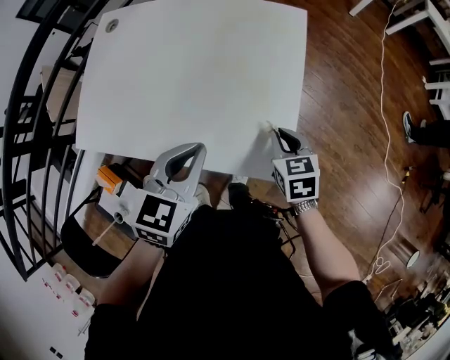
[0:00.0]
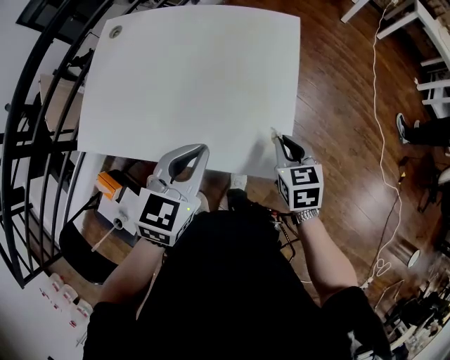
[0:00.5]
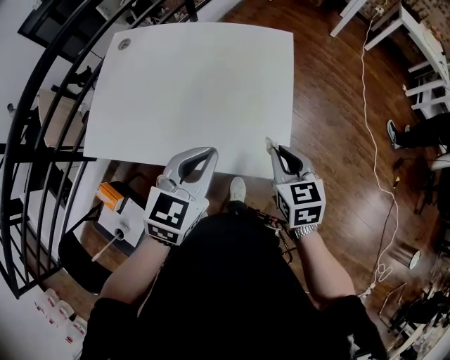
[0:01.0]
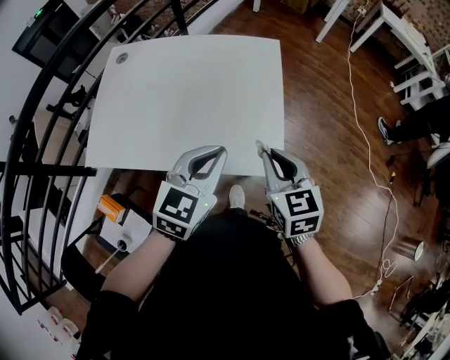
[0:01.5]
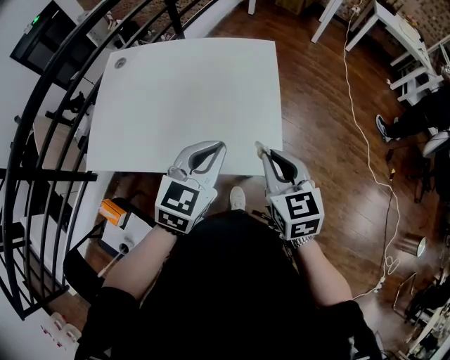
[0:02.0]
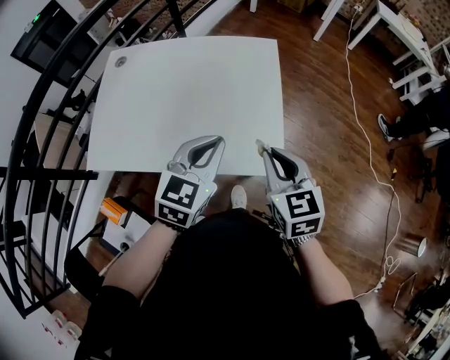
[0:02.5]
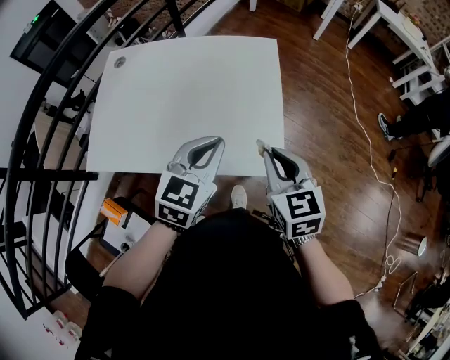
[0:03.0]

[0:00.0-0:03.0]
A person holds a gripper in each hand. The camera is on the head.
0:00.0 to 0:01.5: The left gripper travels upward by roughly 5 cm. The right gripper goes approximately 20 cm upward and backward.
0:01.5 to 0:03.0: The grippers move only a little.

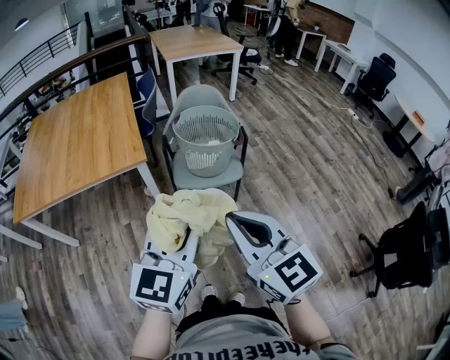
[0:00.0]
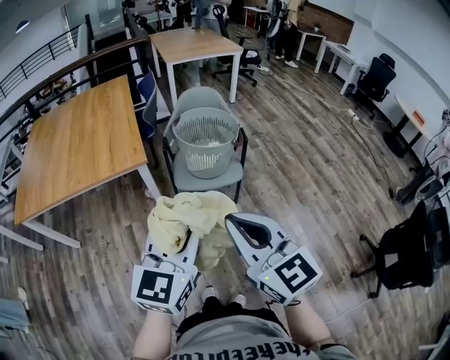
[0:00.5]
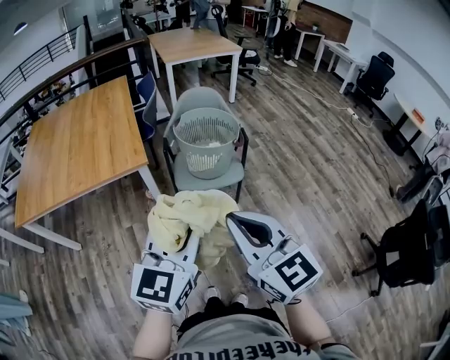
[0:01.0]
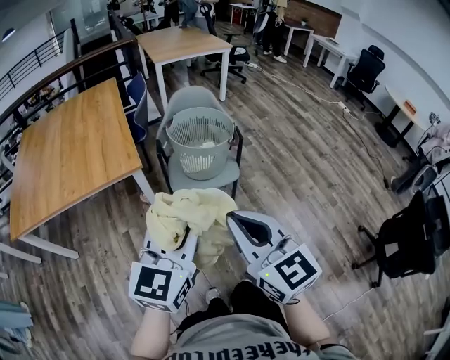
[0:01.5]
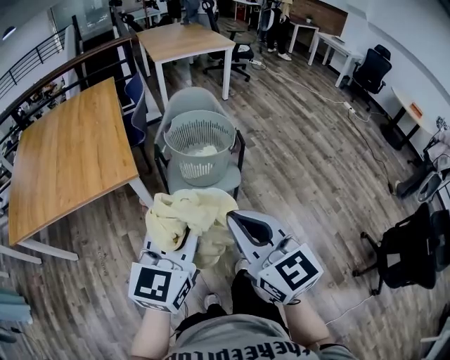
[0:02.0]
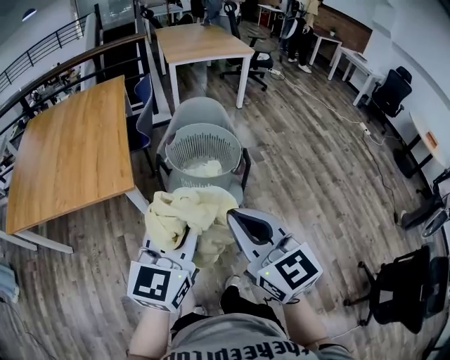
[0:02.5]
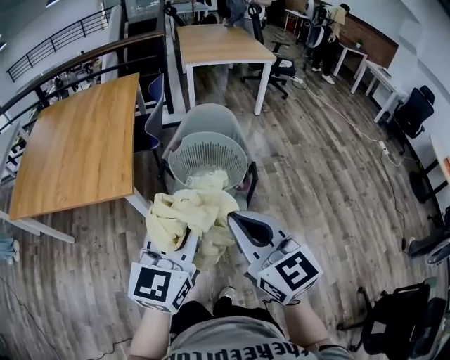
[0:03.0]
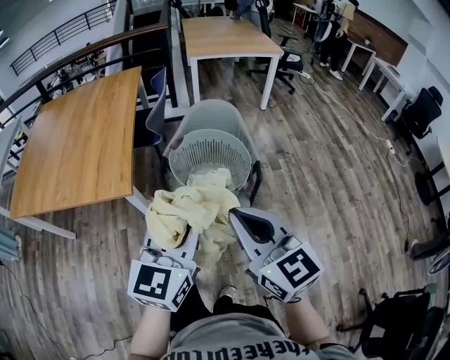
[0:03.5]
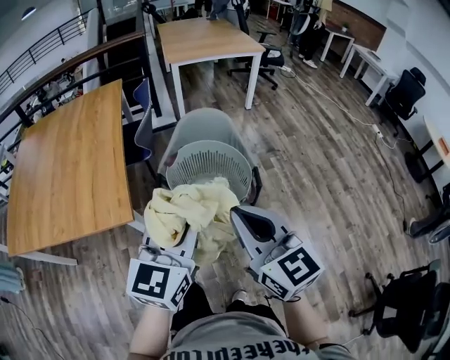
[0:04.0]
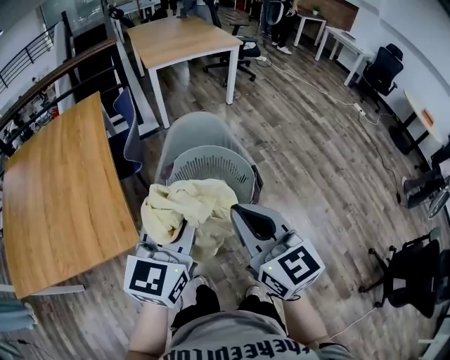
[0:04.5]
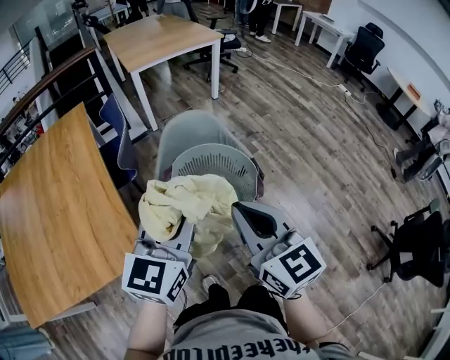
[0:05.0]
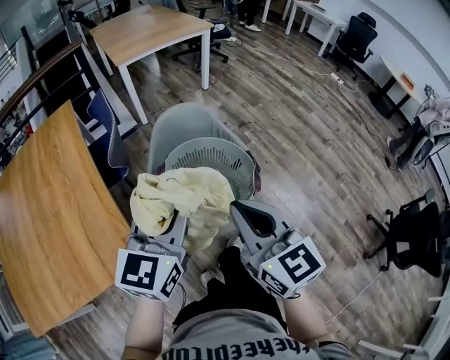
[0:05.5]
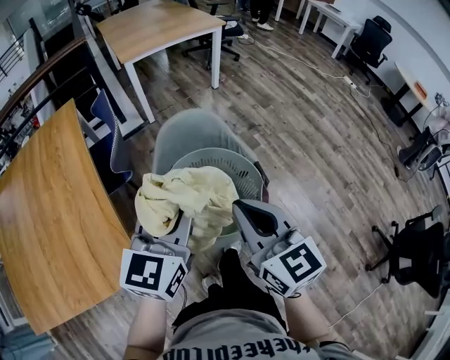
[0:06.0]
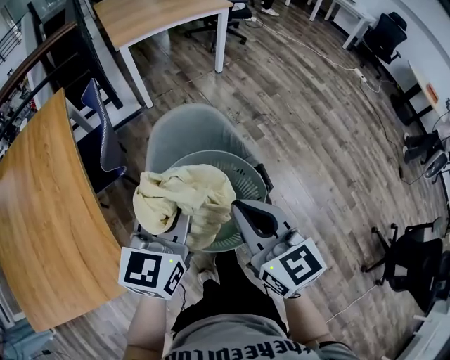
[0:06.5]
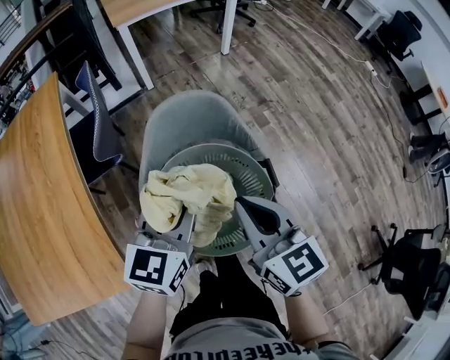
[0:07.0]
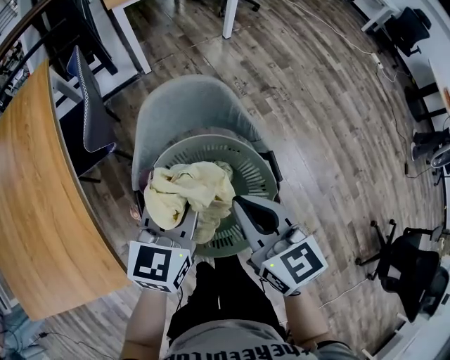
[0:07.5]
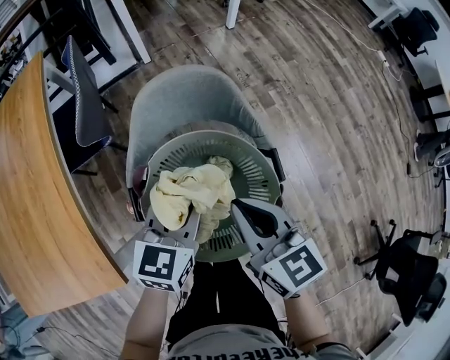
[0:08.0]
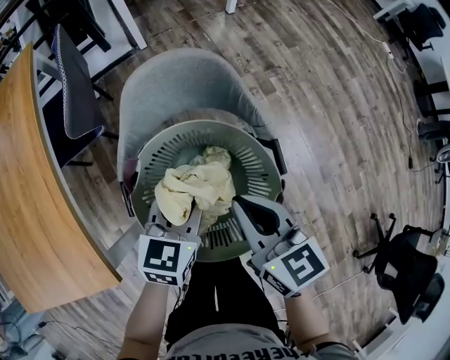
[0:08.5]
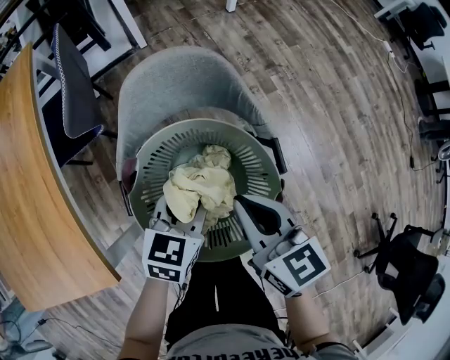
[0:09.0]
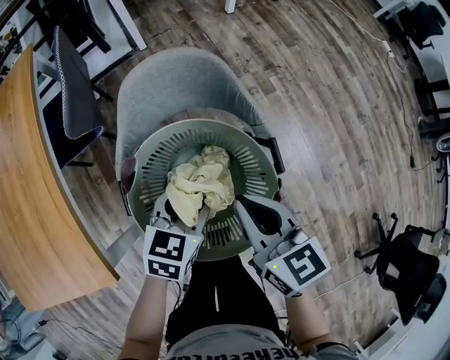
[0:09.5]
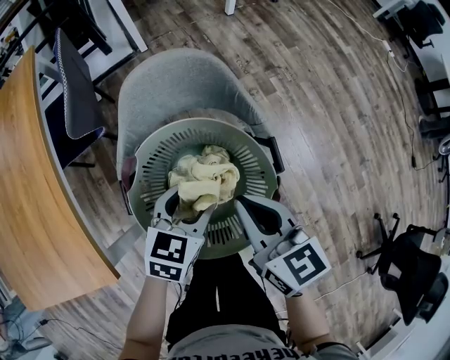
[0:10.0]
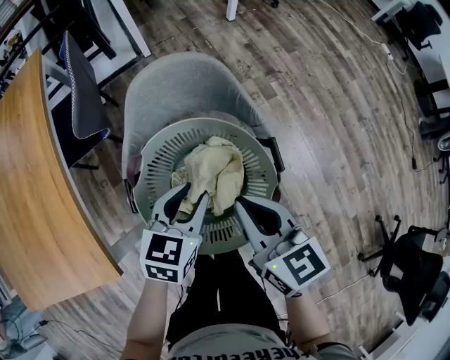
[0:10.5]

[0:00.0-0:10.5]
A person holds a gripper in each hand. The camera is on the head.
0:00.0 to 0:02.0: The grippers both shift forward by approximately 10 cm.
0:02.0 to 0:04.0: Both grippers travel together forward, roughly 25 cm.
0:04.0 to 0:06.5: The right gripper moves forward and downward, approximately 20 cm. The left gripper heads forward, covering about 25 cm.
0:06.5 to 0:08.5: Both grippers travel together downward, some 20 cm. The left gripper rotates some 20 degrees.
0:08.5 to 0:10.5: The left gripper opens and closes again.

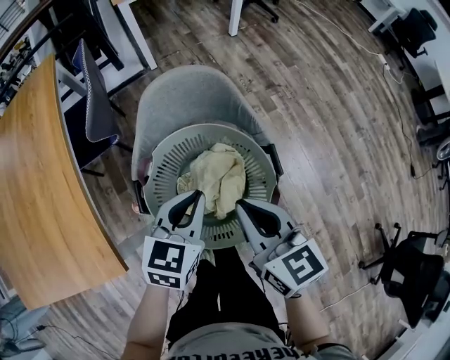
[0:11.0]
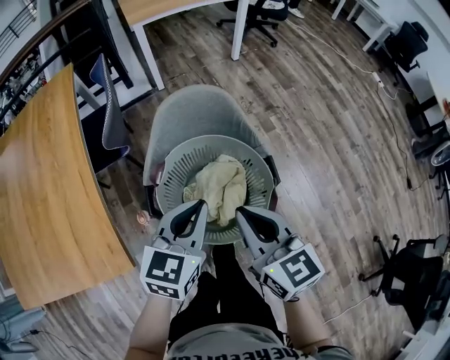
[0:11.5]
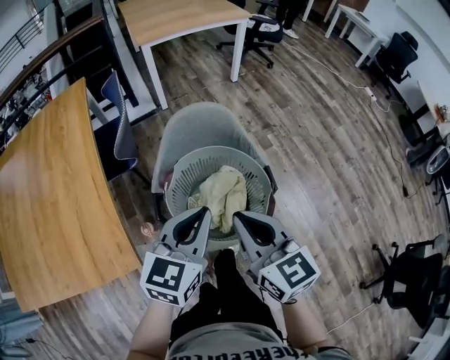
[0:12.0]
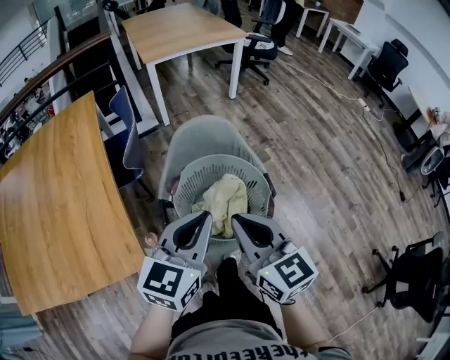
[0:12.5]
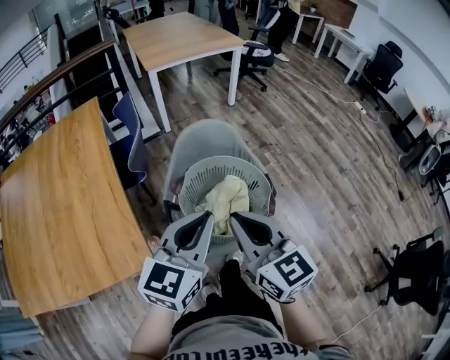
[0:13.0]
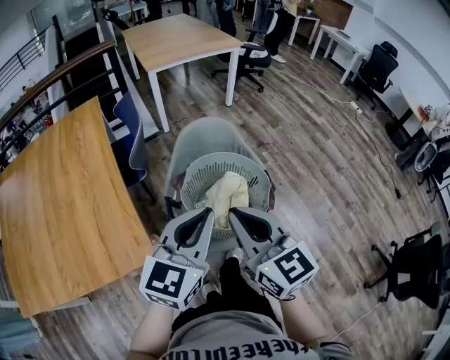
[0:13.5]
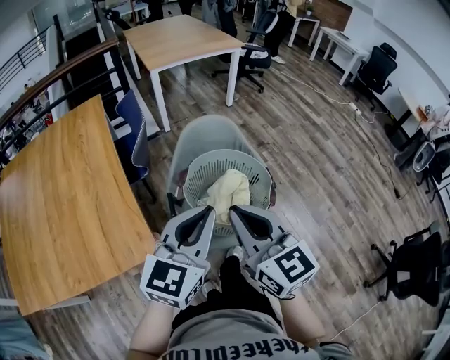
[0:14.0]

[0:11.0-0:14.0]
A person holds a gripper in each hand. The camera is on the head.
0:11.0 to 0:12.5: The left gripper travels upward and backward by approximately 20 cm. Meanwhile the right gripper moves upward, backward and to the left, some 15 cm.
0:12.5 to 0:14.0: The grippers both shift backward by approximately 5 cm.

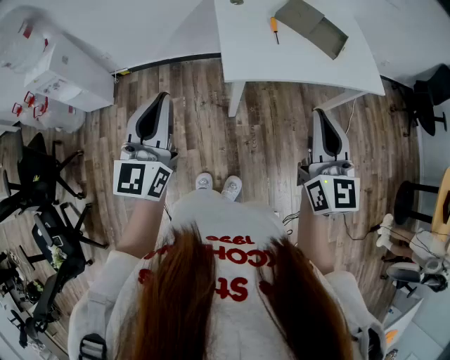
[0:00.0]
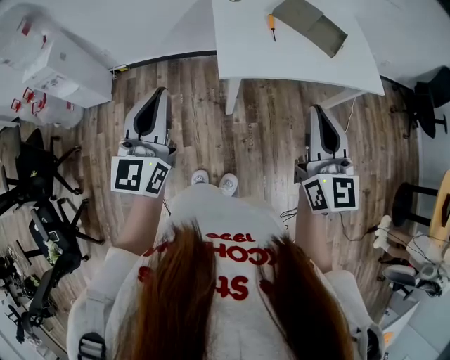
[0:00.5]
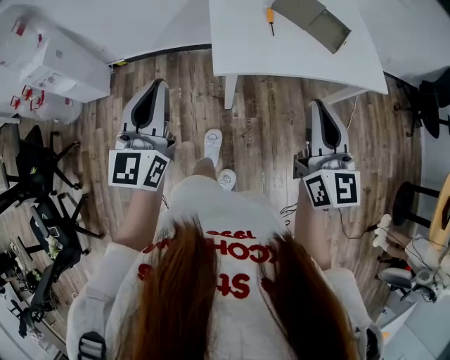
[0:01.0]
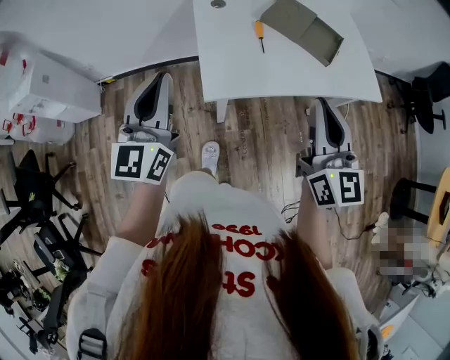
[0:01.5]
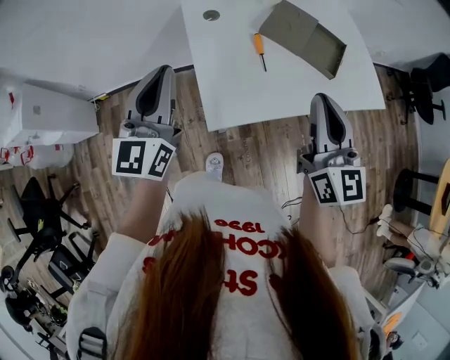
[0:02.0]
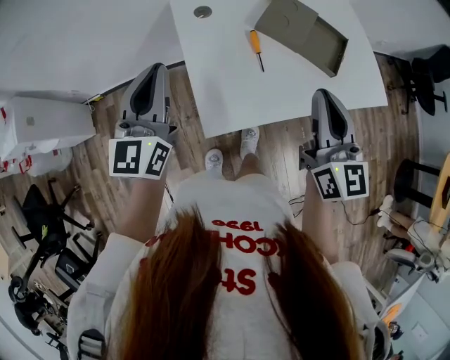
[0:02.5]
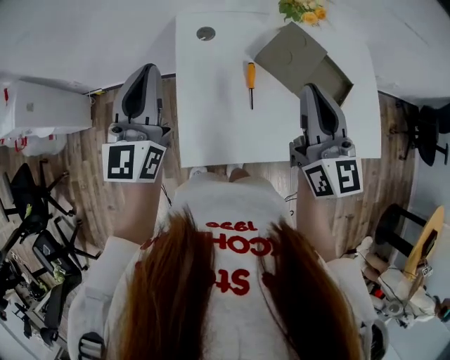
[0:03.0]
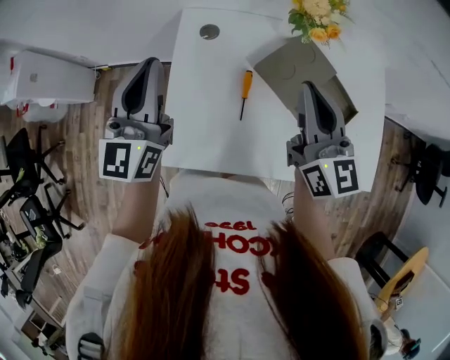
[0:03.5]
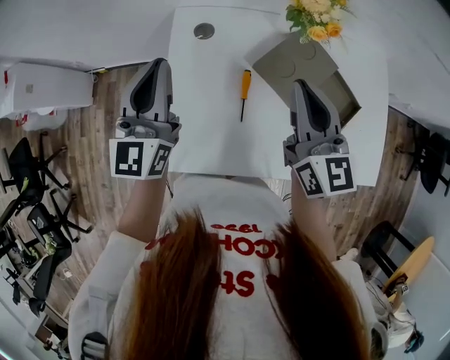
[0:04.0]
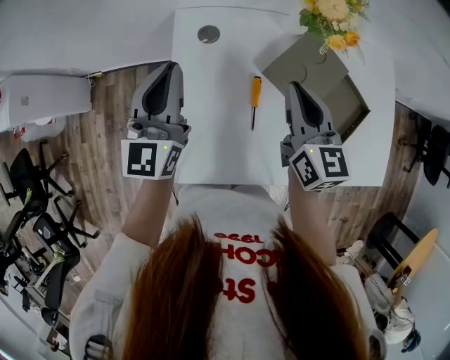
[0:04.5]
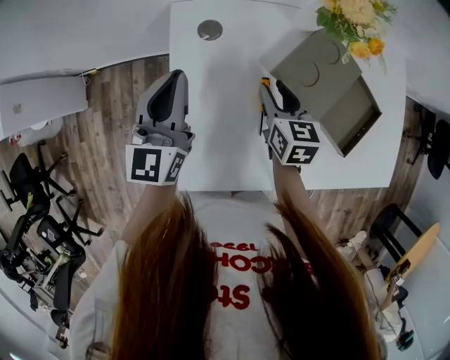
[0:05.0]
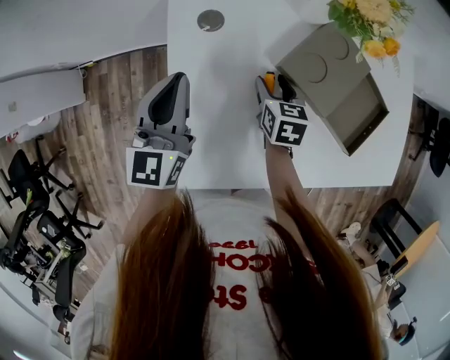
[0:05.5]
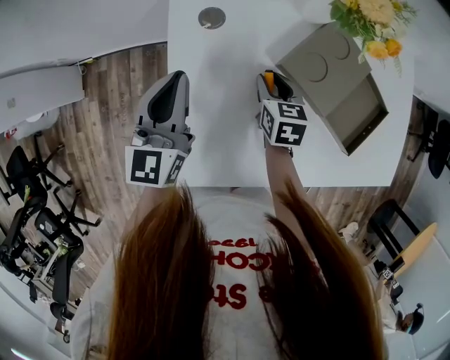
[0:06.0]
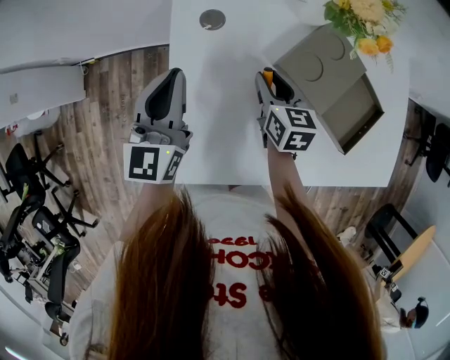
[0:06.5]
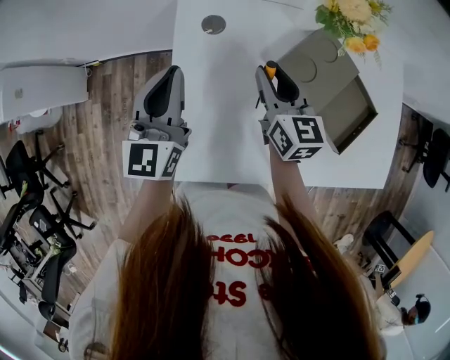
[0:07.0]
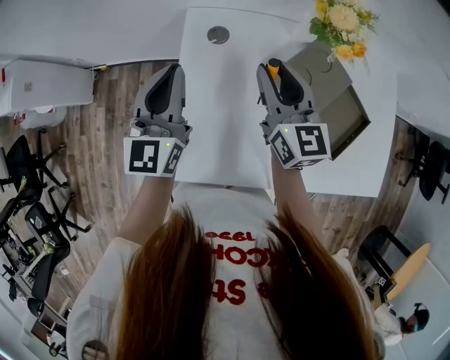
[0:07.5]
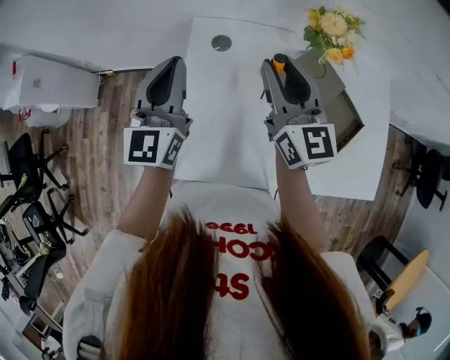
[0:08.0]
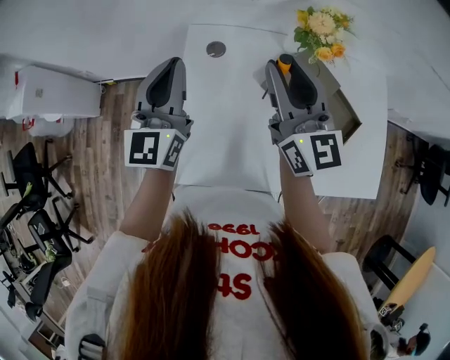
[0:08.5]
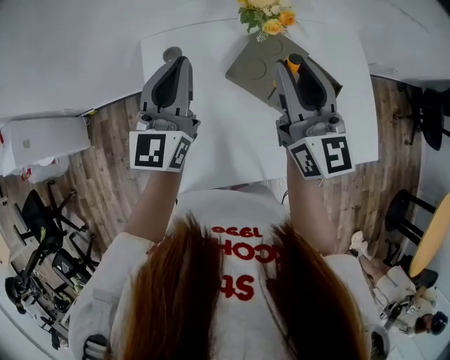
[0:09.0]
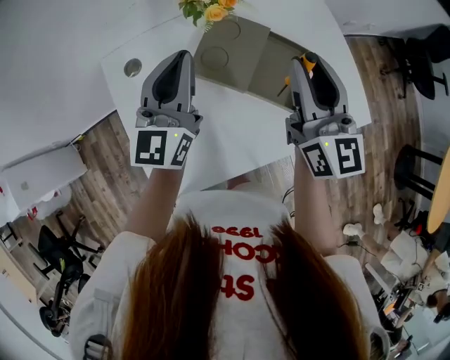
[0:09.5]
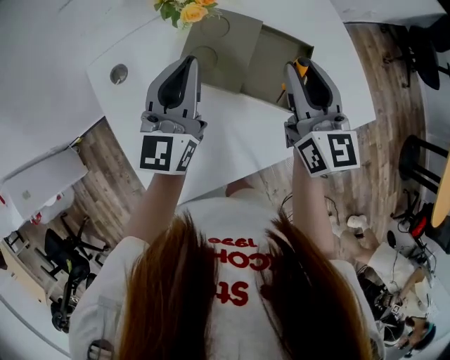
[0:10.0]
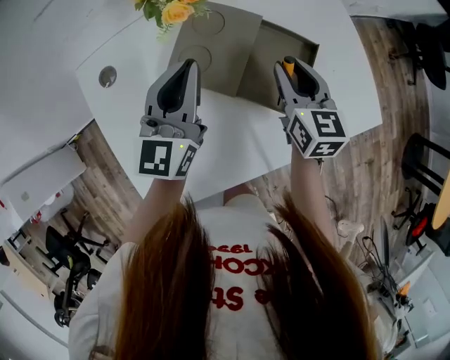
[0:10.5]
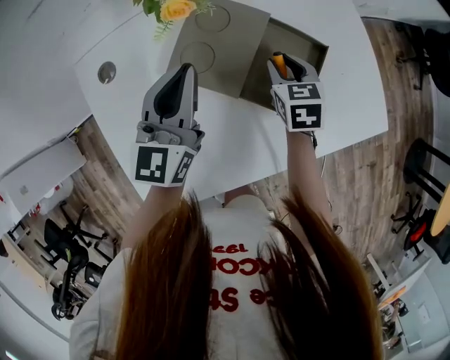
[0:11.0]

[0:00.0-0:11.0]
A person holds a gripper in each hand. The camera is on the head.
0:00.0 to 0:02.0: Both grippers move forward, approximately 25 cm.
0:02.0 to 0:03.5: The left gripper moves forward and to the right, some 20 cm; the right gripper heads forward, covering approximately 25 cm, and rotates roughly 20 degrees.
0:03.5 to 0:05.5: The right gripper goes about 30 cm downward, tilts its fingers approximately 50 degrees downward, and opens its fingers; the left gripper heads downward and forward, covering about 15 cm.
0:05.5 to 0:07.5: The left gripper goes approximately 10 cm upward, while the right gripper is displaced upward by roughly 20 cm, tips its fingers upward by roughly 40 degrees, and closes.
0:07.5 to 0:09.0: The left gripper goes approximately 15 cm to the right, while the right gripper travels to the right, upward and backward by roughly 15 cm.
0:09.0 to 0:11.0: The right gripper shifts about 30 cm downward and to the right, and tilts its fingers about 50 degrees downward. Meanwhile the left gripper goes roughly 20 cm to the right and downward.
